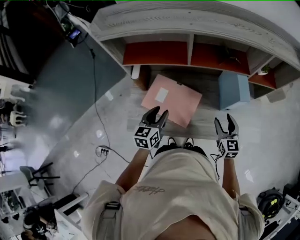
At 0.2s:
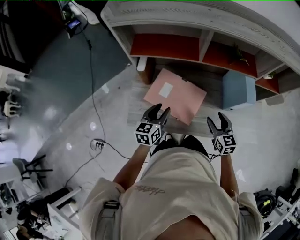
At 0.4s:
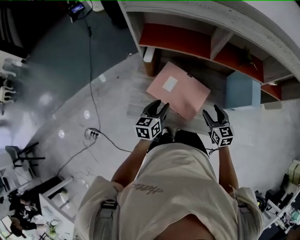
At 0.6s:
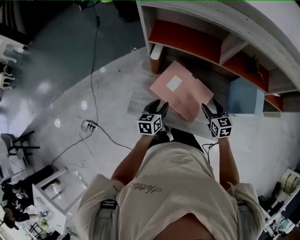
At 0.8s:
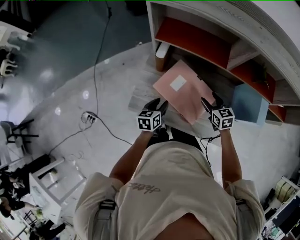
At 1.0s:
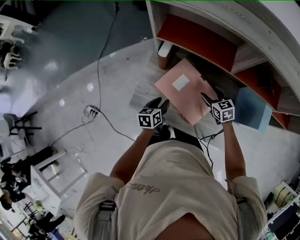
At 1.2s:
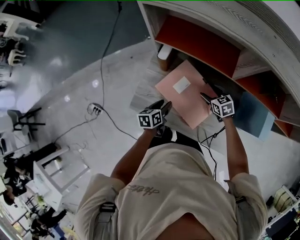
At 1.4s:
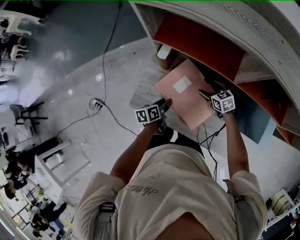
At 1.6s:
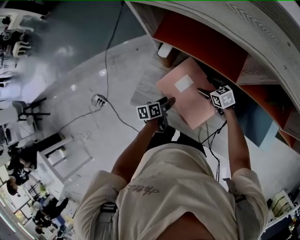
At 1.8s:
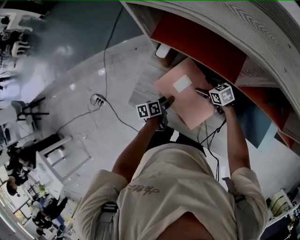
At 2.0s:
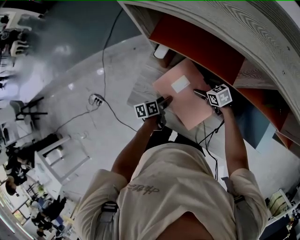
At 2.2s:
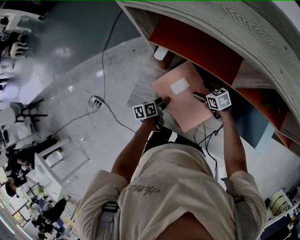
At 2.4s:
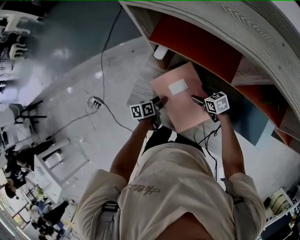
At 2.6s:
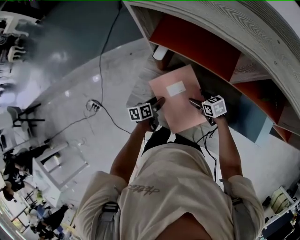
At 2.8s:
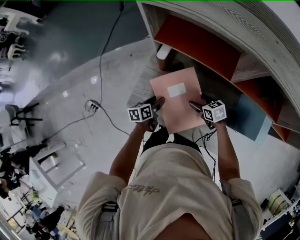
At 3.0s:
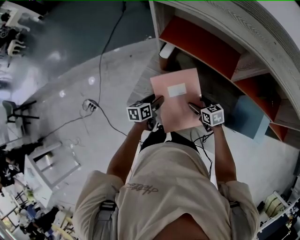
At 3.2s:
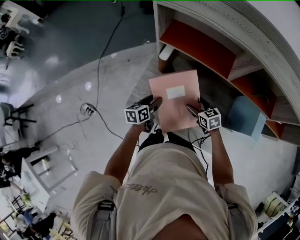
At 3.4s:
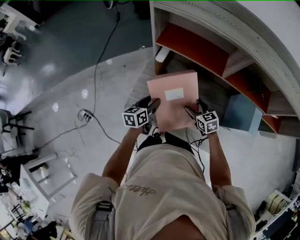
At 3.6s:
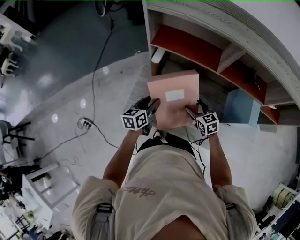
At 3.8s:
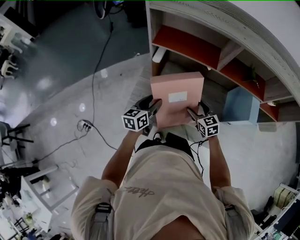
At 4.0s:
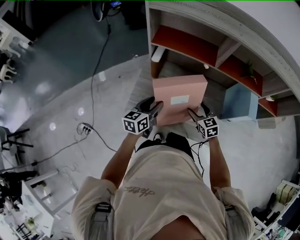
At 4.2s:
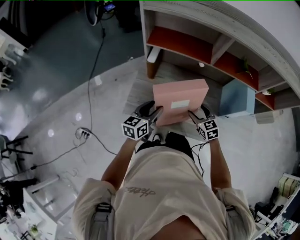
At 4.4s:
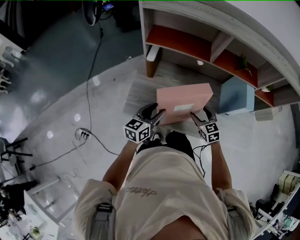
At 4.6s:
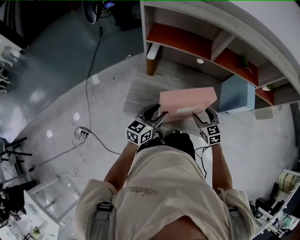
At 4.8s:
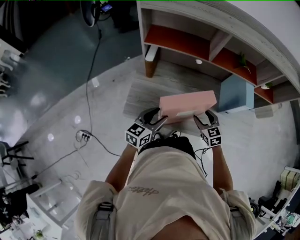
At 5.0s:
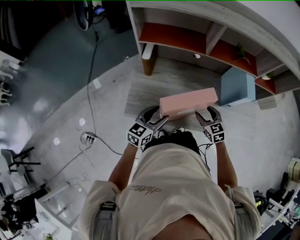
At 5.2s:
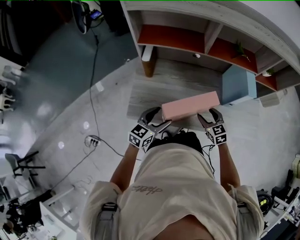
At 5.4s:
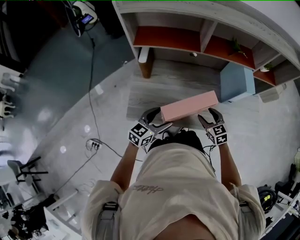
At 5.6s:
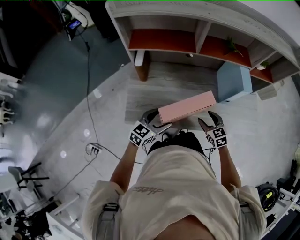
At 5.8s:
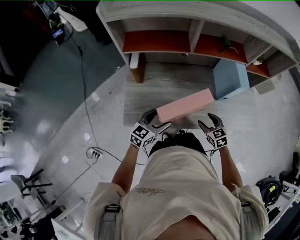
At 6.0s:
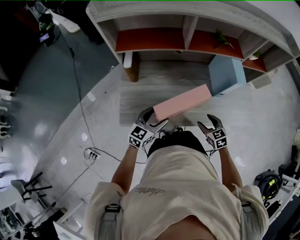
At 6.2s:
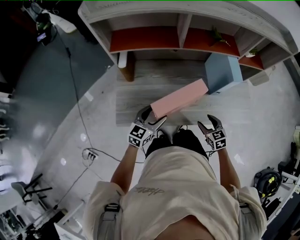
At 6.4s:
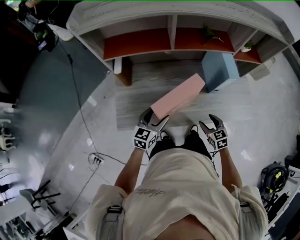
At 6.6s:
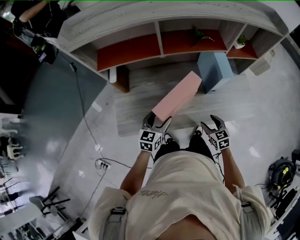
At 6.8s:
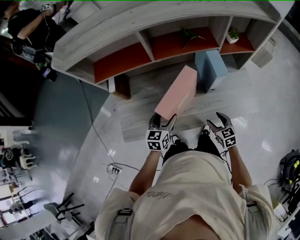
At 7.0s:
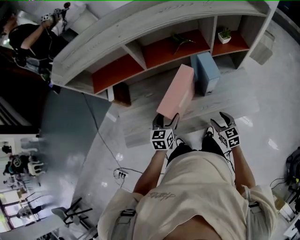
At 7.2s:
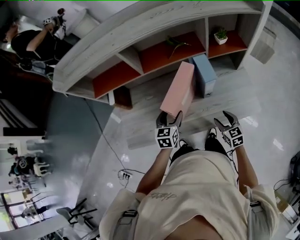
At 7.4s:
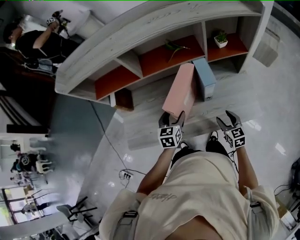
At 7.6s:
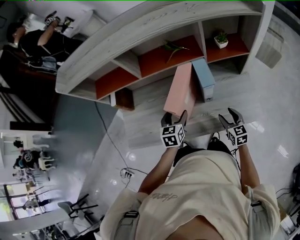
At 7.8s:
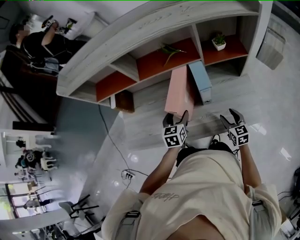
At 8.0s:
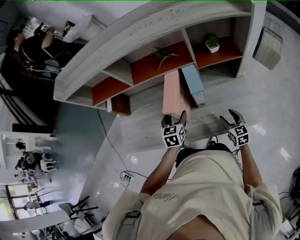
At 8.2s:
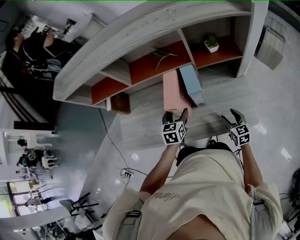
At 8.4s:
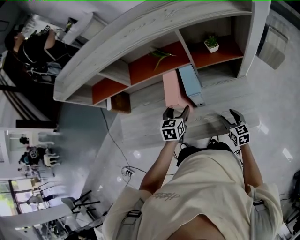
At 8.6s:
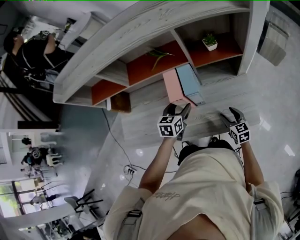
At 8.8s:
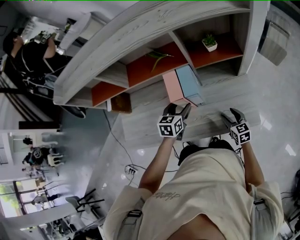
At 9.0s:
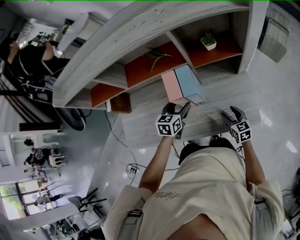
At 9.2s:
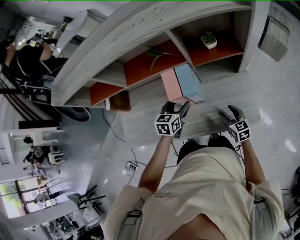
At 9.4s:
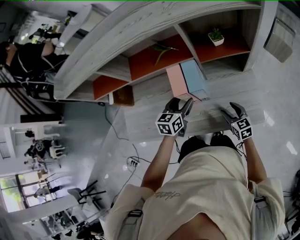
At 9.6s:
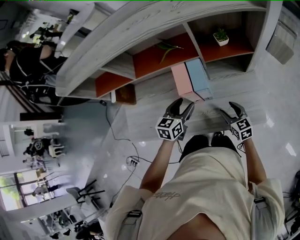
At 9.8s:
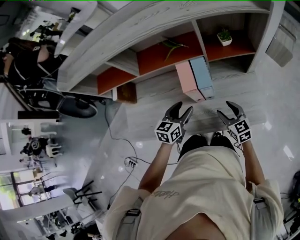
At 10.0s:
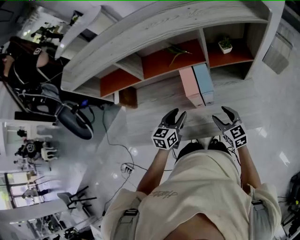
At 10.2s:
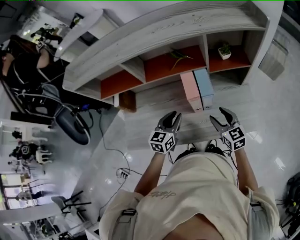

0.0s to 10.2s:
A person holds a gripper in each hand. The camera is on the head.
0.0s to 1.4s: The right gripper moves about 30 cm, and rotates some 50 degrees. The left gripper heads downward, covering some 20 cm, and twists approximately 50 degrees counterclockwise, seen from behind.
1.4s to 3.0s: The right gripper heads backward, covering about 5 cm.
3.0s to 4.4s: The left gripper is displaced upward and backward by roughly 15 cm, and turns by roughly 40 degrees, while the right gripper shifts roughly 10 cm backward and upward, and turns by about 30 degrees.
4.4s to 5.8s: The left gripper moves approximately 5 cm, turns by about 30 degrees, and opens its fingers. Meanwhile the right gripper heads backward and to the right, covering about 10 cm.
5.8s to 7.2s: The left gripper travels to the right and forward by approximately 20 cm, and changes its angle by about 20 degrees. The right gripper heads to the right, covering roughly 15 cm.
7.2s to 8.8s: Both grippers move to the right and forward, about 15 cm.
8.8s to 10.2s: The left gripper moves to the left, upward and backward, some 10 cm, and closes; the right gripper goes roughly 20 cm upward and to the left.

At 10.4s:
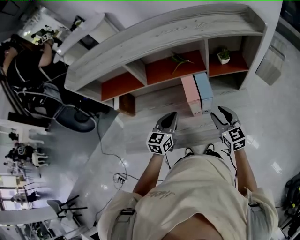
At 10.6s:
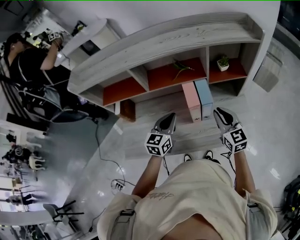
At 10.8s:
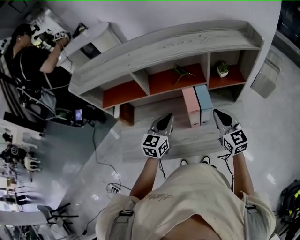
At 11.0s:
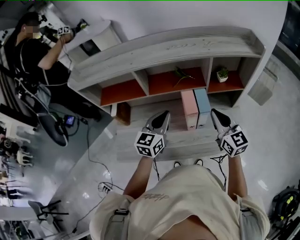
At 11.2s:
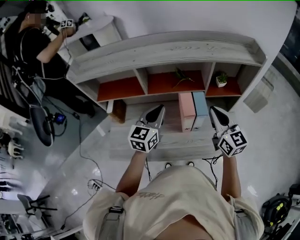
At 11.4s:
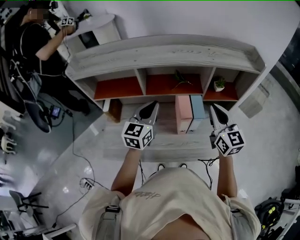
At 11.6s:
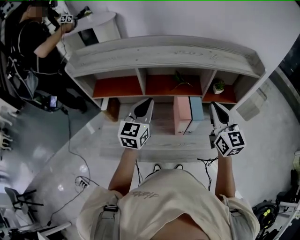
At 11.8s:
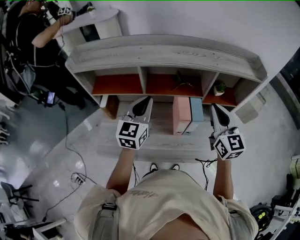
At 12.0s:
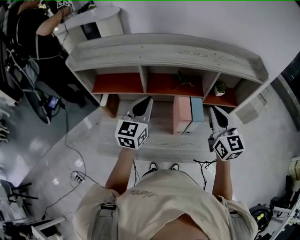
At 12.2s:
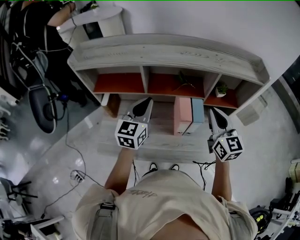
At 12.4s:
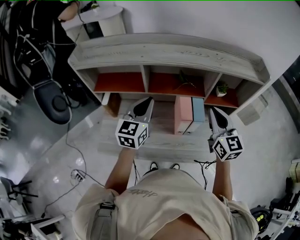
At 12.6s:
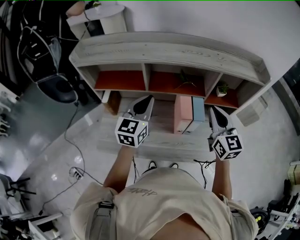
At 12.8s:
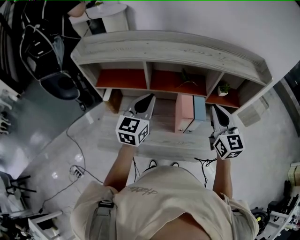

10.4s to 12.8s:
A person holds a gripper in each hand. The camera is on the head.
10.4s to 11.6s: Both grippers move upward, some 20 cm. The right gripper closes up.
11.6s to 12.8s: There are only small adjustments of the grippers.

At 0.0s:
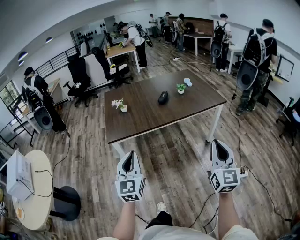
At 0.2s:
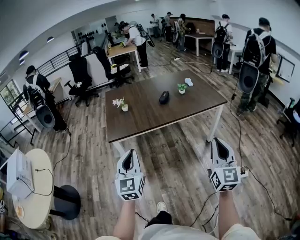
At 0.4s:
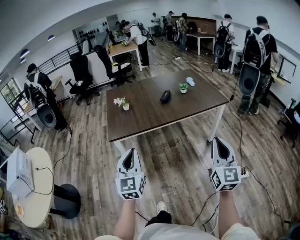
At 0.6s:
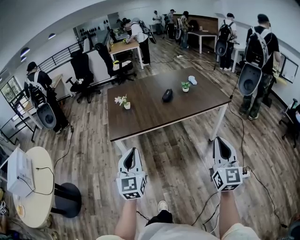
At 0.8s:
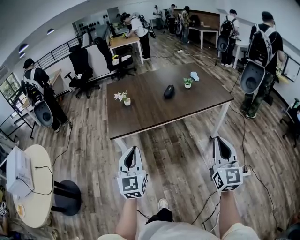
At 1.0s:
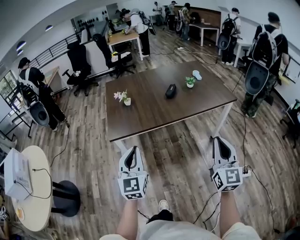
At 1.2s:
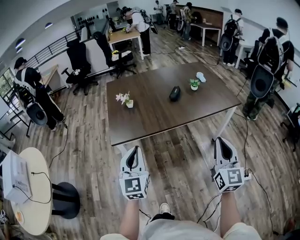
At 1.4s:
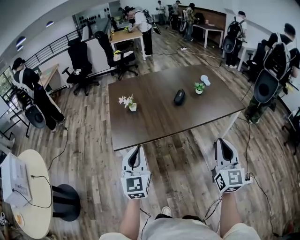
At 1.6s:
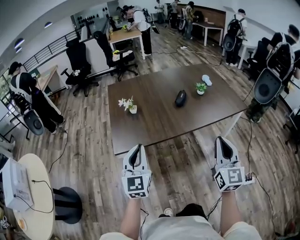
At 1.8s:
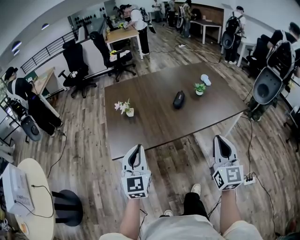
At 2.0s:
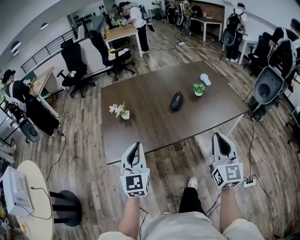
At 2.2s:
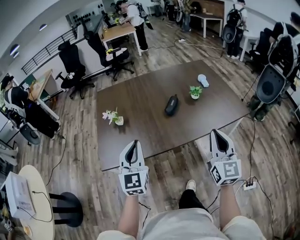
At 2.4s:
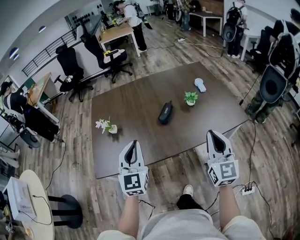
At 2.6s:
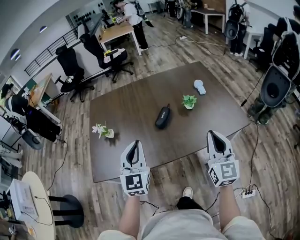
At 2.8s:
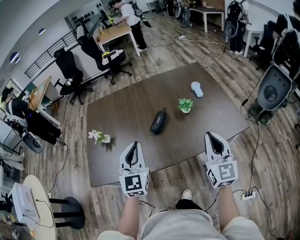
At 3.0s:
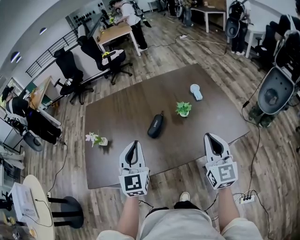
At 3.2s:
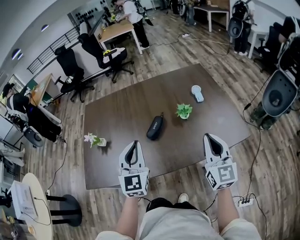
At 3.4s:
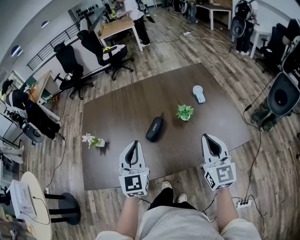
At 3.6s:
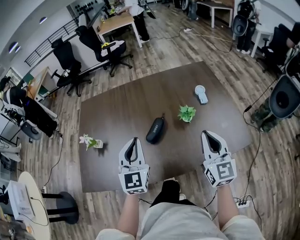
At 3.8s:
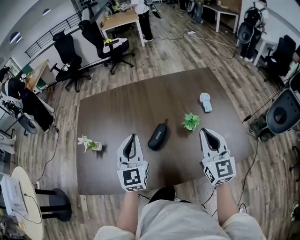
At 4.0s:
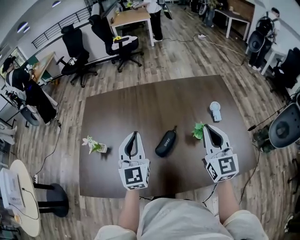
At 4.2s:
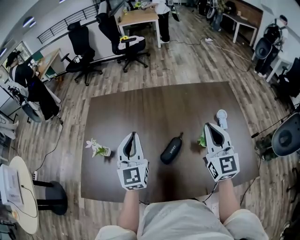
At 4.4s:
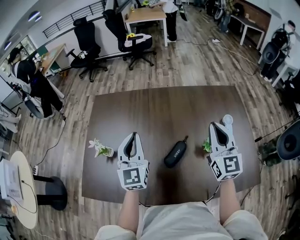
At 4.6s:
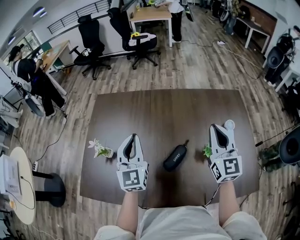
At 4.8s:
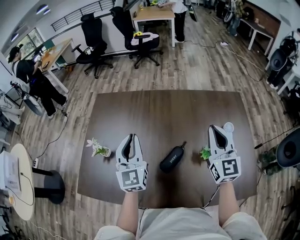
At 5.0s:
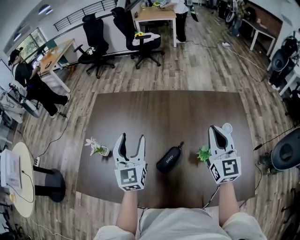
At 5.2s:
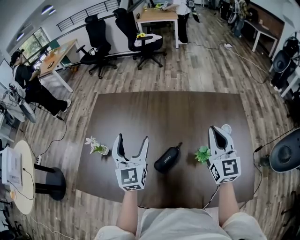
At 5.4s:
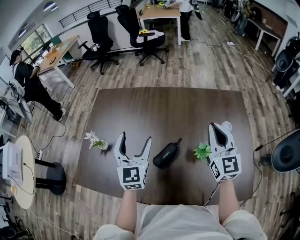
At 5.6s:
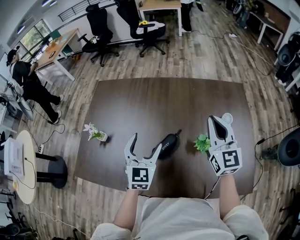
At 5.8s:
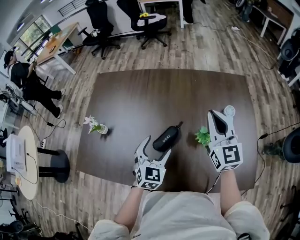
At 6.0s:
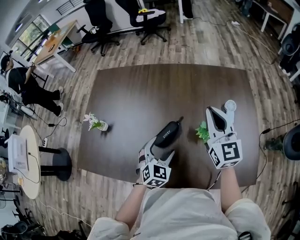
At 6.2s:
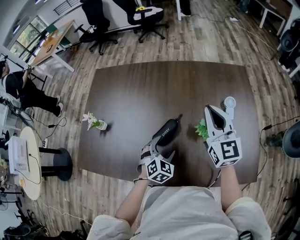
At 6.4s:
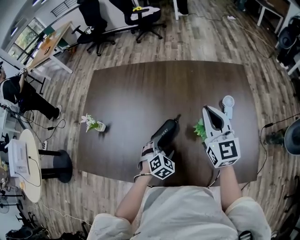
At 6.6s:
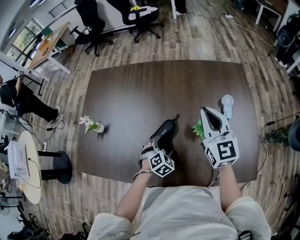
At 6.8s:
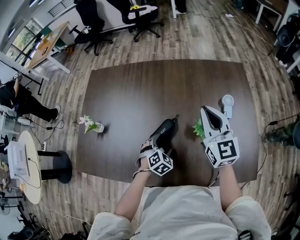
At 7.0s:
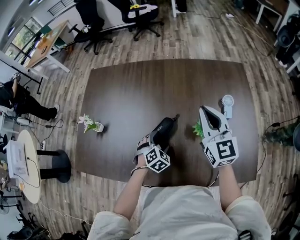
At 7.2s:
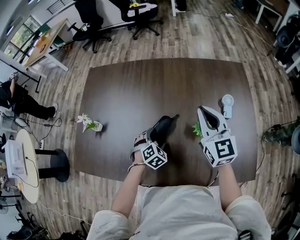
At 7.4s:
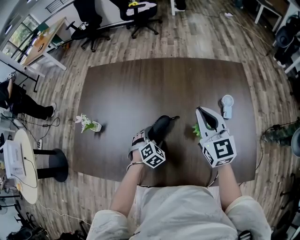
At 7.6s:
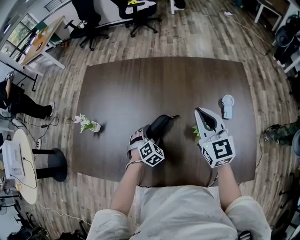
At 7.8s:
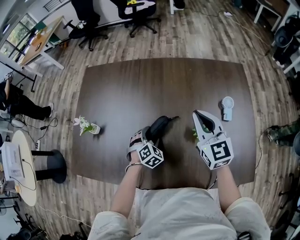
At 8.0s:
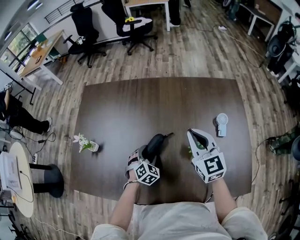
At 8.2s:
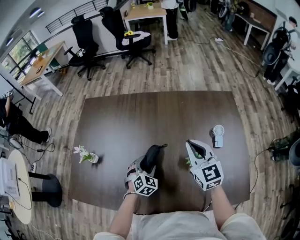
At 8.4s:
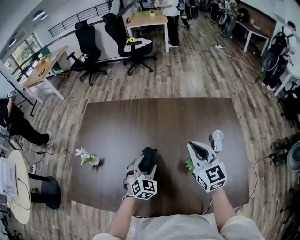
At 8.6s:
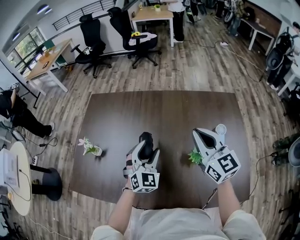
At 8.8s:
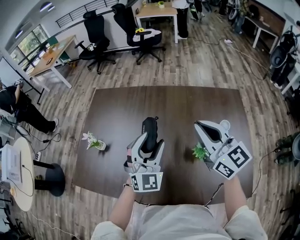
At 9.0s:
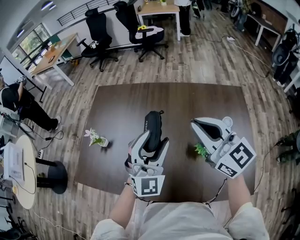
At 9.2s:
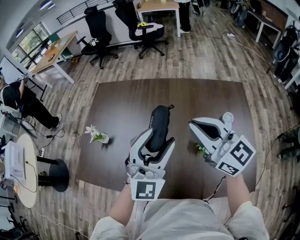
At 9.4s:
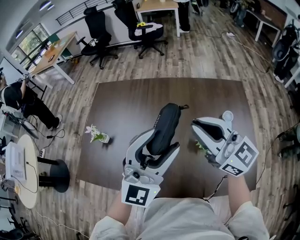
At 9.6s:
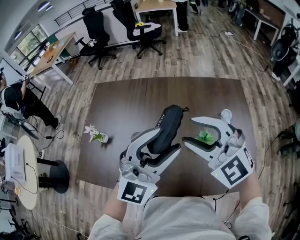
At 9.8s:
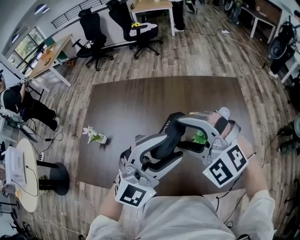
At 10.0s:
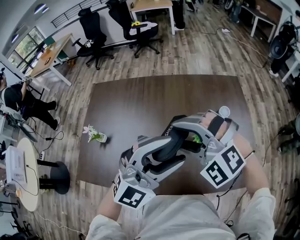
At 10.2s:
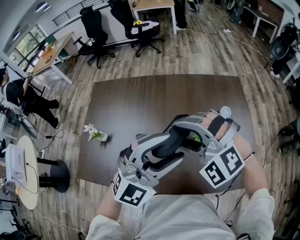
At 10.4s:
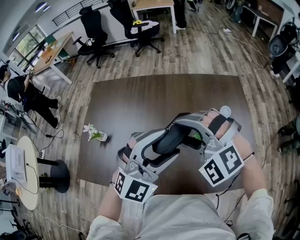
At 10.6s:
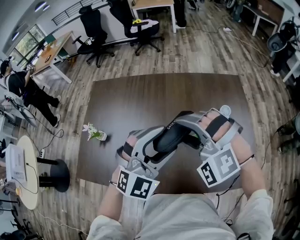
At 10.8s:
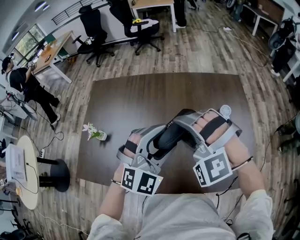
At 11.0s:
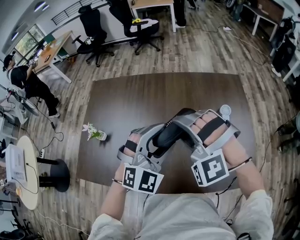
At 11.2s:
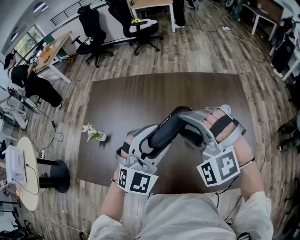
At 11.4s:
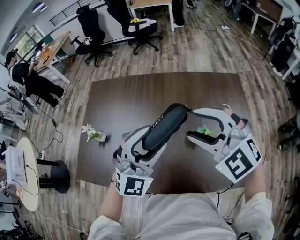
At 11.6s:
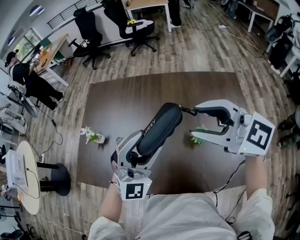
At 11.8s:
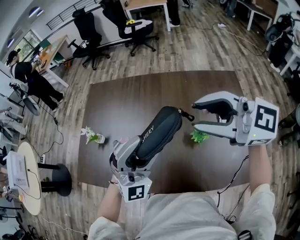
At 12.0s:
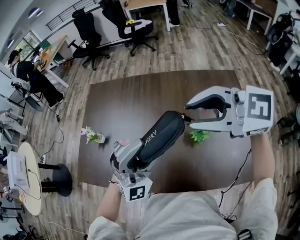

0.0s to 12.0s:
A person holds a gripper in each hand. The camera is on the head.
0.0s to 1.6s: The grippers both shift forward and to the left by about 25 cm.
1.6s to 3.0s: Both grippers travel together forward and to the right, approximately 40 cm.
3.0s to 4.4s: The left gripper travels forward and to the left by some 25 cm. The right gripper is displaced forward by some 30 cm.
4.4s to 6.0s: The right gripper heads to the right, covering roughly 5 cm. The left gripper is displaced downward, to the right and backward by approximately 30 cm, angles its fingers downward, by roughly 40 degrees, and opens.
6.0s to 7.6s: The left gripper is displaced downward and forward by approximately 15 cm, and swivels about 30 degrees, while the right gripper changes place by about 5 cm.
7.6s to 9.0s: The left gripper goes some 35 cm upward, and points its fingers approximately 60 degrees further upward. The right gripper travels upward by approximately 15 cm, and changes its angle by some 30 degrees.
9.0s to 10.4s: The left gripper travels backward by roughly 5 cm, and swivels about 30 degrees. The right gripper travels downward and backward by some 10 cm, rolls counterclockwise, seen from behind, by some 60 degrees, and opens.
10.4s to 12.0s: The right gripper shifts roughly 10 cm upward, and swivels some 60 degrees, while the left gripper turns by some 30 degrees.
